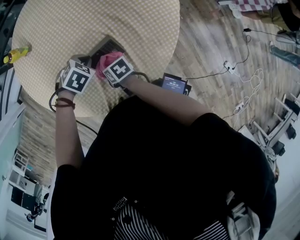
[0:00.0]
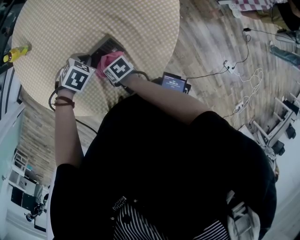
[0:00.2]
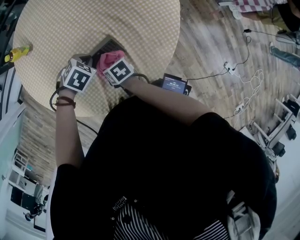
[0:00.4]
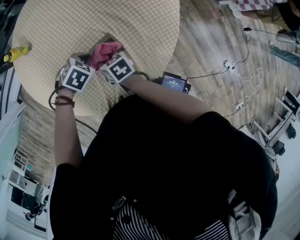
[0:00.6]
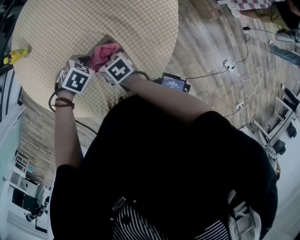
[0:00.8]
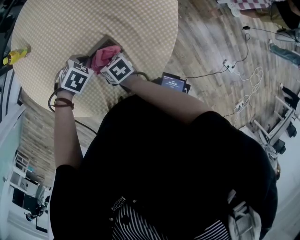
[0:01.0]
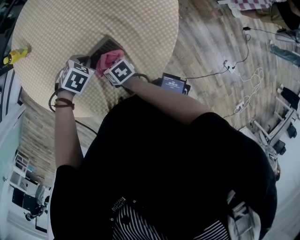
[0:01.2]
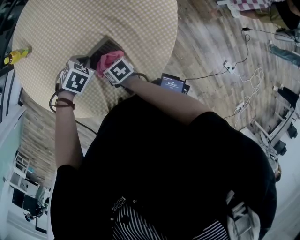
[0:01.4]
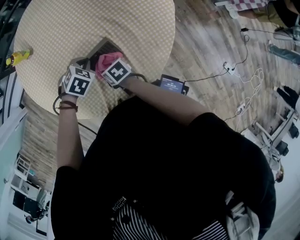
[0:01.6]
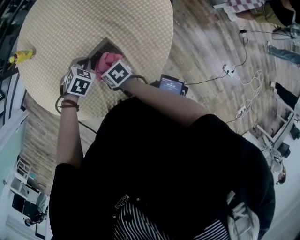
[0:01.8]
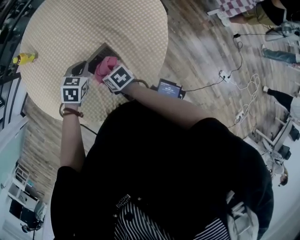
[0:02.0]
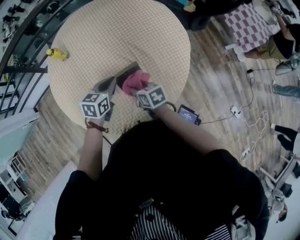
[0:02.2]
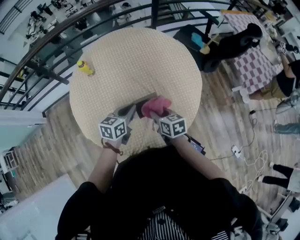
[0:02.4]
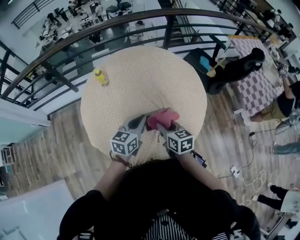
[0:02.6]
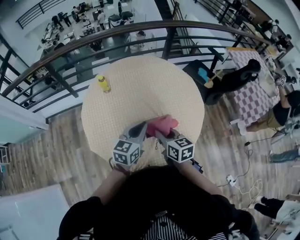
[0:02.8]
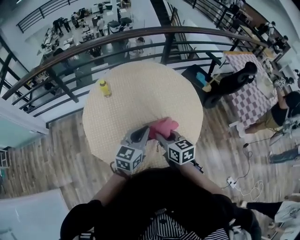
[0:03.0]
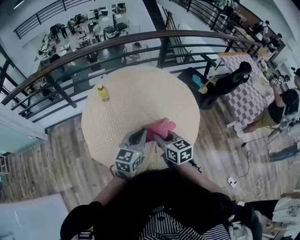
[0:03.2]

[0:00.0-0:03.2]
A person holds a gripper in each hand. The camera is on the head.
0:01.6 to 0:03.2: The two grippers go roughly 30 cm upward. The right gripper turns by approximately 40 degrees, while the left gripper tilts its fingers about 60 degrees upward.

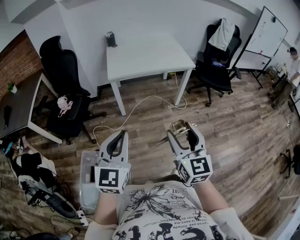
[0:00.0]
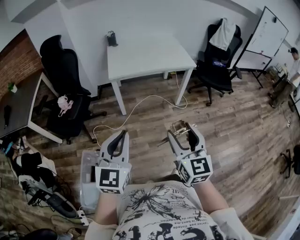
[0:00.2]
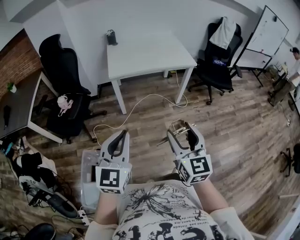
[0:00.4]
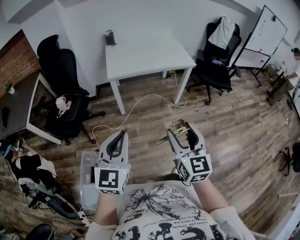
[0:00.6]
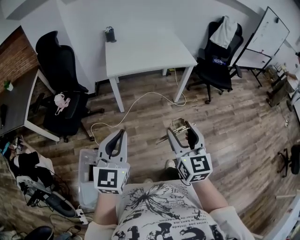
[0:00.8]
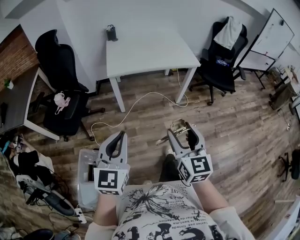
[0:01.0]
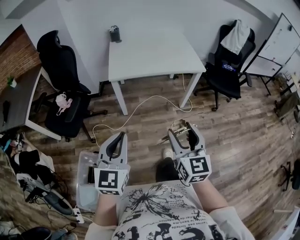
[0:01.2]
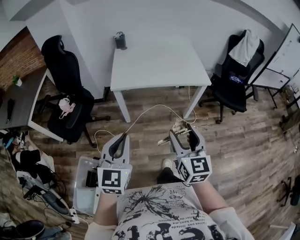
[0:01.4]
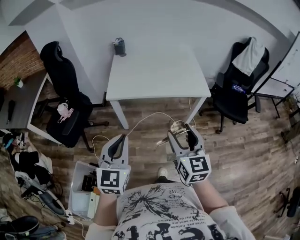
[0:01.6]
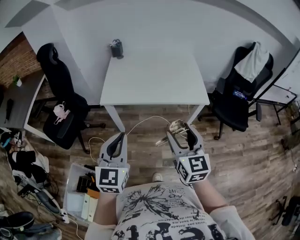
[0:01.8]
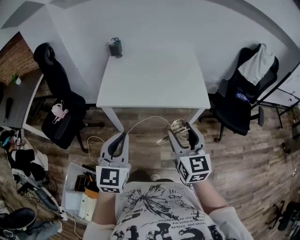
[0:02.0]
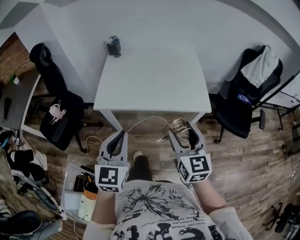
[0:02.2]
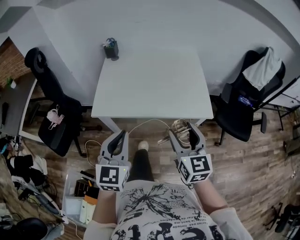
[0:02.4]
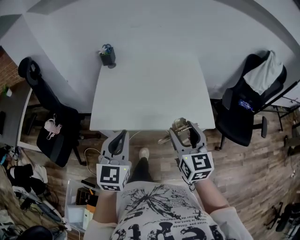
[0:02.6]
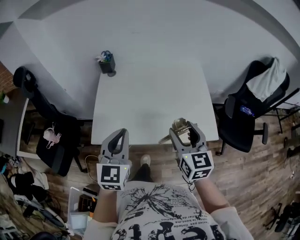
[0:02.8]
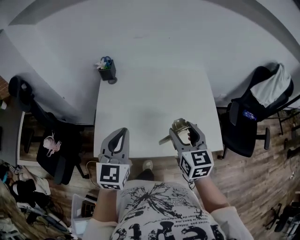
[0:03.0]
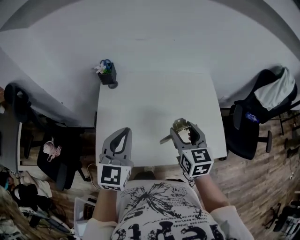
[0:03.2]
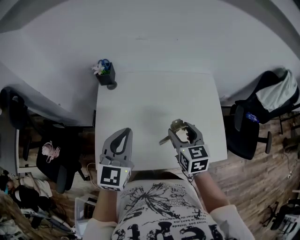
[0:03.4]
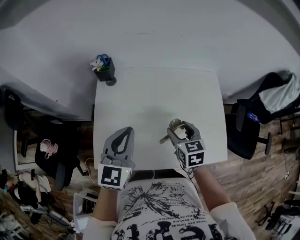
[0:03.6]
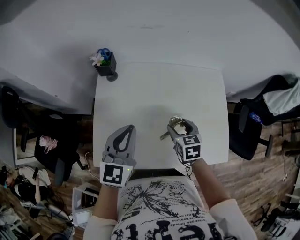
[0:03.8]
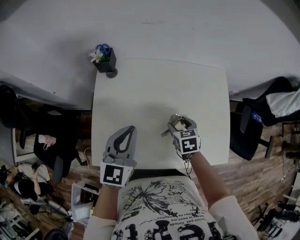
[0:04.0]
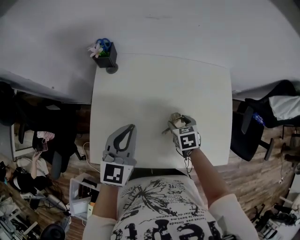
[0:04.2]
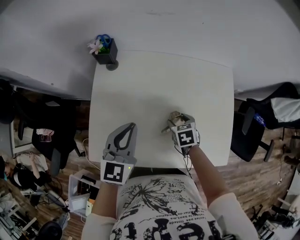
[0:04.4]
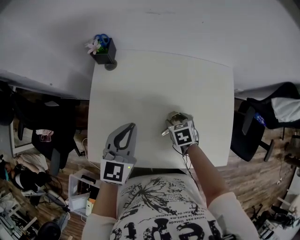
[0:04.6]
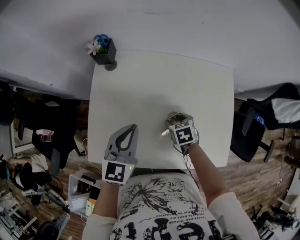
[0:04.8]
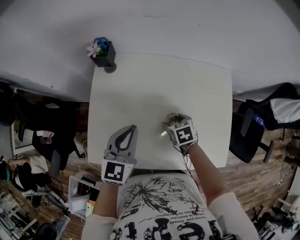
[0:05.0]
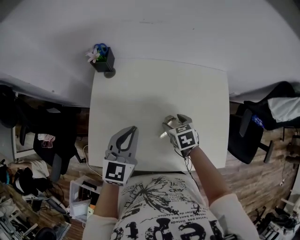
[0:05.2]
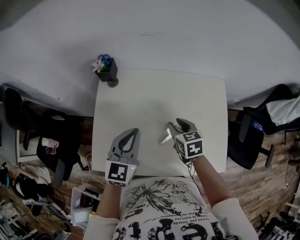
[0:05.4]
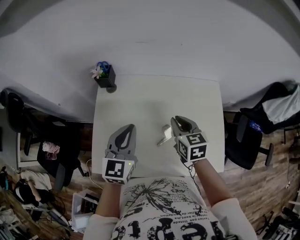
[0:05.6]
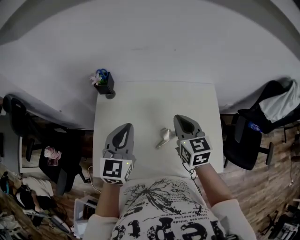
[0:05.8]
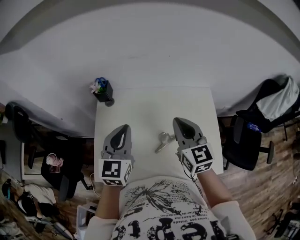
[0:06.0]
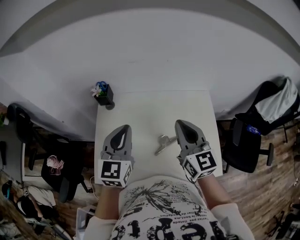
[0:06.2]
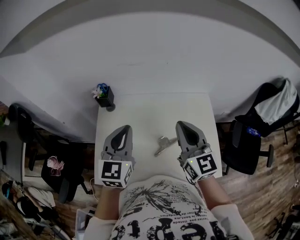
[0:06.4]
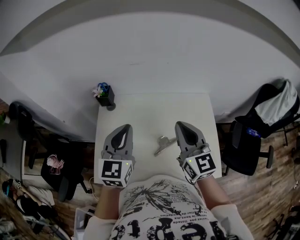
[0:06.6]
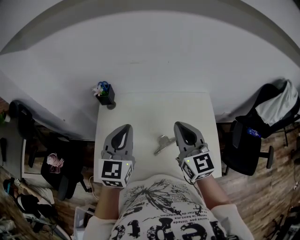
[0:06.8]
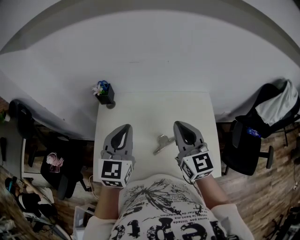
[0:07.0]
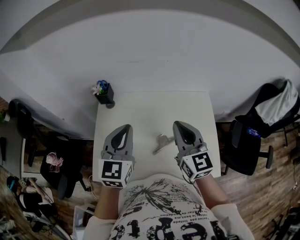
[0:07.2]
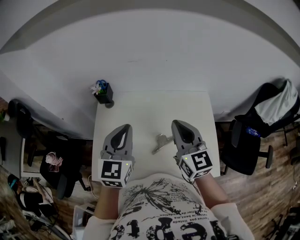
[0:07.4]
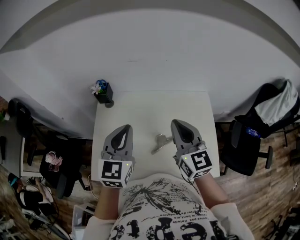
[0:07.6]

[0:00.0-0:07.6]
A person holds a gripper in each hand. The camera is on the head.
0:00.0 to 0:01.6: Both grippers move forward, some 25 cm.
0:01.6 to 0:03.0: Both grippers are carried forward, some 50 cm.
0:03.0 to 0:04.6: The right gripper goes roughly 30 cm downward and forward, and angles its fingers downward, by approximately 50 degrees. Meanwhile the left gripper is displaced forward and downward by approximately 20 cm.
0:04.6 to 0:06.0: The right gripper heads upward, covering about 30 cm, tilts its fingers approximately 50 degrees upward, and closes. Meanwhile the left gripper moves upward, about 10 cm.
0:06.0 to 0:07.6: The grippers move only a little.

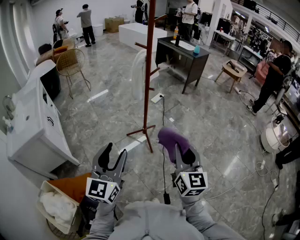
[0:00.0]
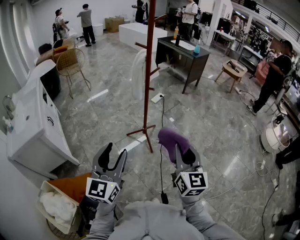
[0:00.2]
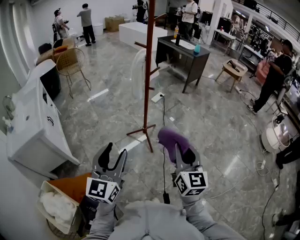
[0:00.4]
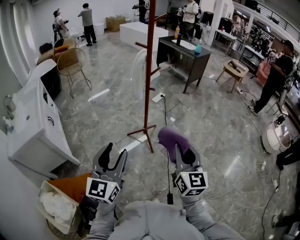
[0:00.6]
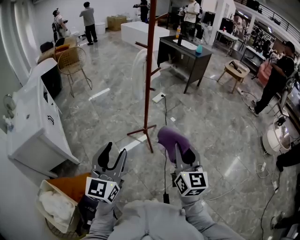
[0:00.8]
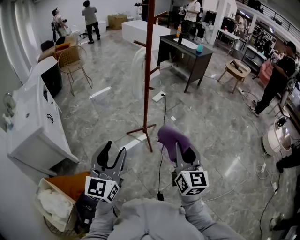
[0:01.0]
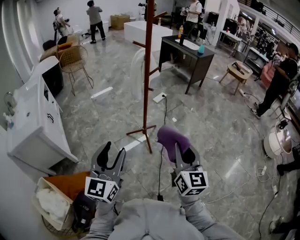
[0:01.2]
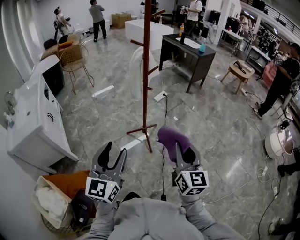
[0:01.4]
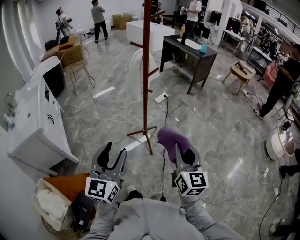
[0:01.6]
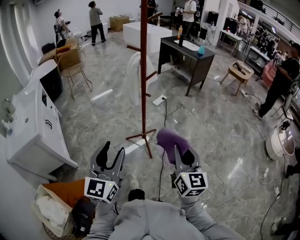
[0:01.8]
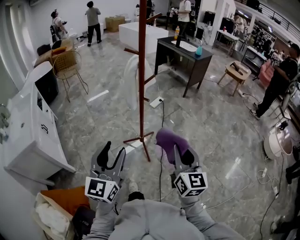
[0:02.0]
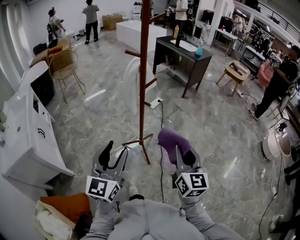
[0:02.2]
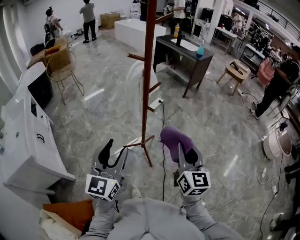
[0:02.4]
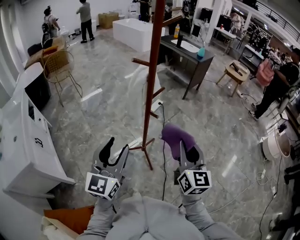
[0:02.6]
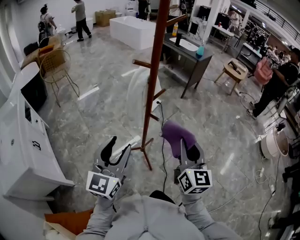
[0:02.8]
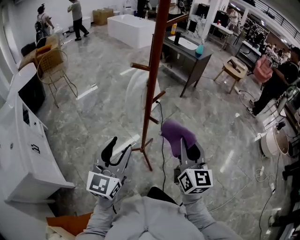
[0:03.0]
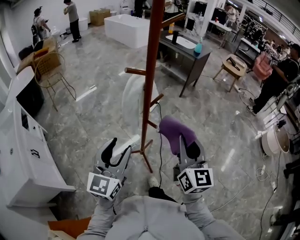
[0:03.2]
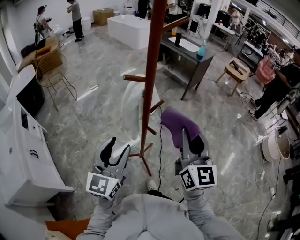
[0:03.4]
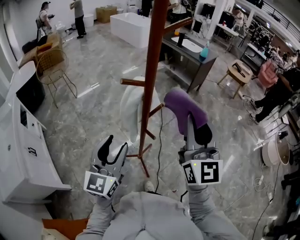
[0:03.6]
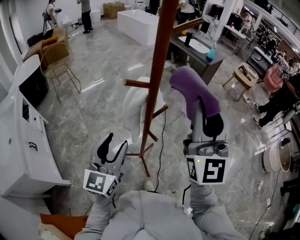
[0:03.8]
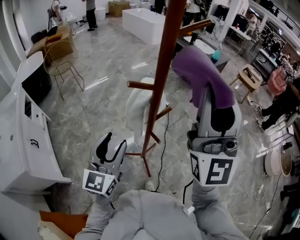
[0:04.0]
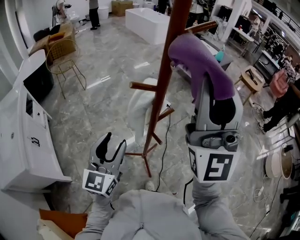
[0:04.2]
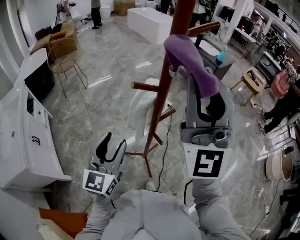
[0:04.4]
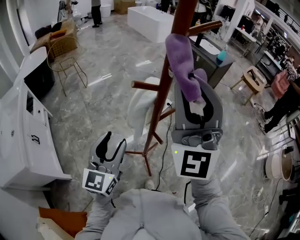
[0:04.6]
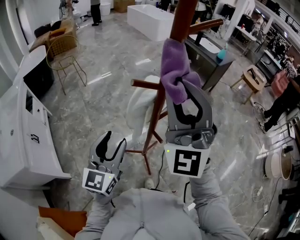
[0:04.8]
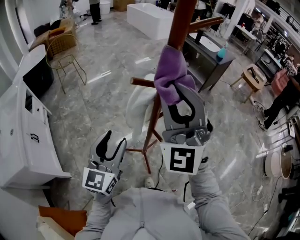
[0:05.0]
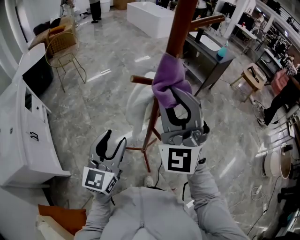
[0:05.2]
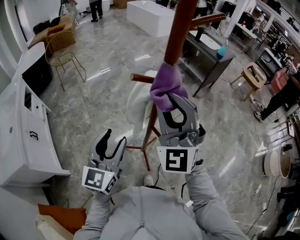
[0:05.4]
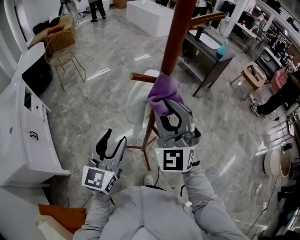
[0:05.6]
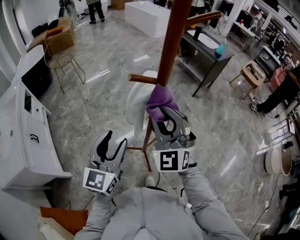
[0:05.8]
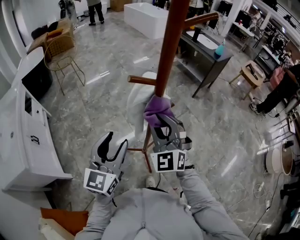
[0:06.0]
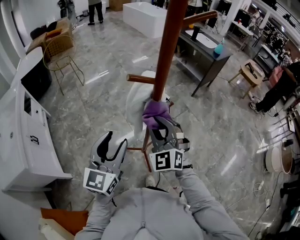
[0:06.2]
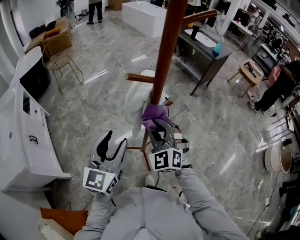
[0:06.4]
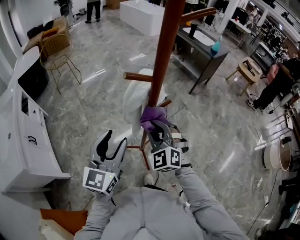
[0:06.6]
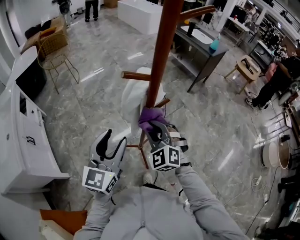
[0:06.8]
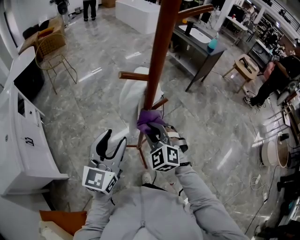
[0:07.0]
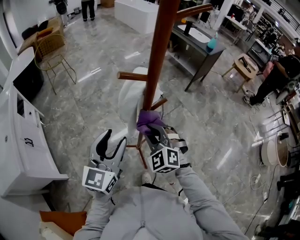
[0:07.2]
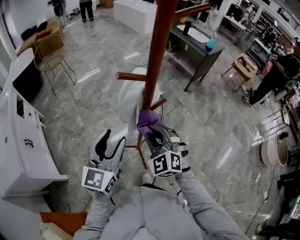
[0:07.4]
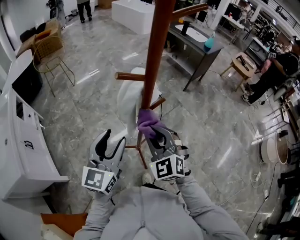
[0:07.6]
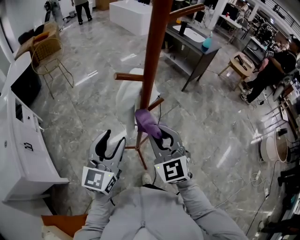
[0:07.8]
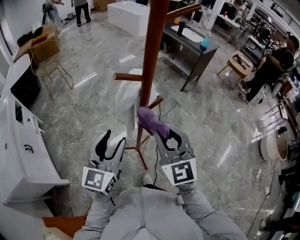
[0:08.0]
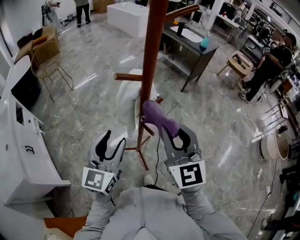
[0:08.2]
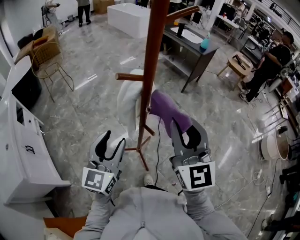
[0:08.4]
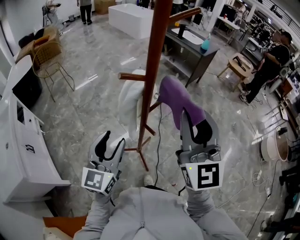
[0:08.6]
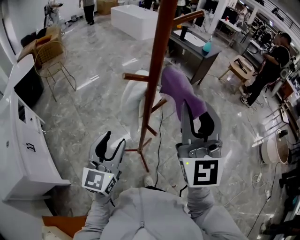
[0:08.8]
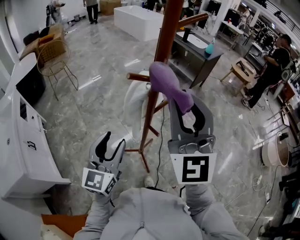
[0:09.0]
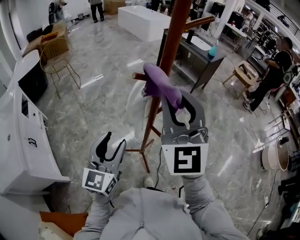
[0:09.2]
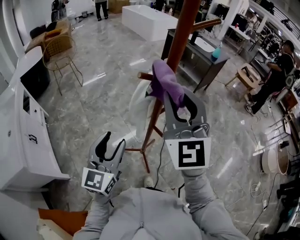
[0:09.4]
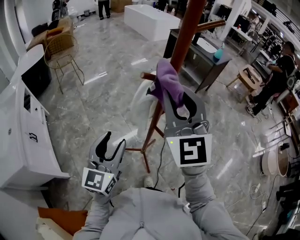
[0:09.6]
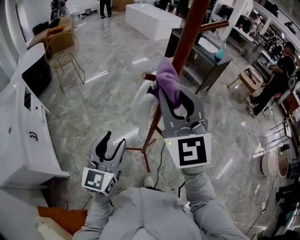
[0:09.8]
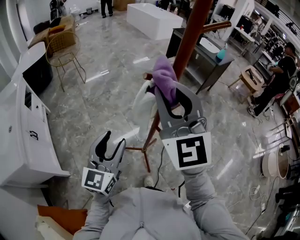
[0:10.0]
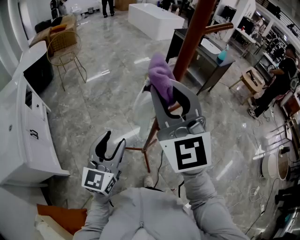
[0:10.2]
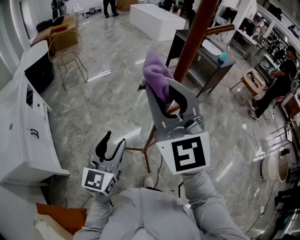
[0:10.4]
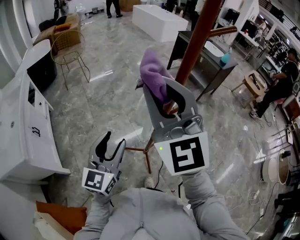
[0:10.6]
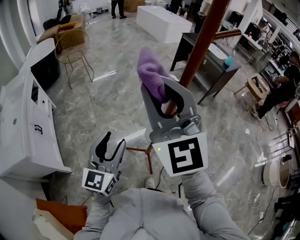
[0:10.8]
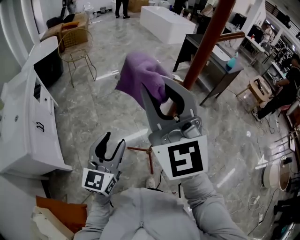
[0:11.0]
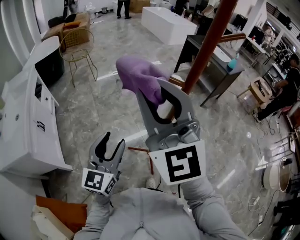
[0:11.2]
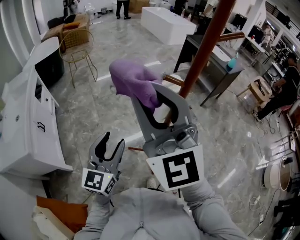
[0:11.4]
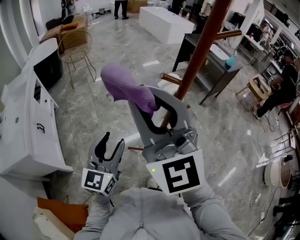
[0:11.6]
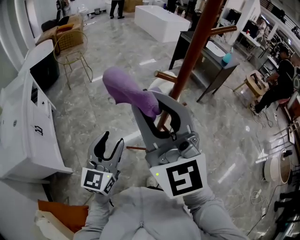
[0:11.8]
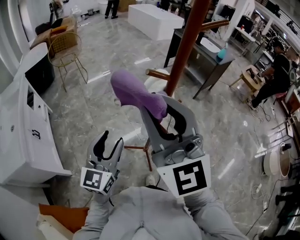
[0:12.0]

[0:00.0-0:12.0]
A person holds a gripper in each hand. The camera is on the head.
0:00.0 to 0:01.6: The two grippers go approximately 5 cm forward.
0:01.6 to 0:03.0: The two grippers go roughly 25 cm forward.
0:03.0 to 0:04.4: The right gripper moves upward and forward, approximately 30 cm, and tilts its fingers roughly 30 degrees upward. Meanwhile the left gripper shifts approximately 10 cm forward.
0:04.4 to 0:06.0: The right gripper is displaced downward by roughly 25 cm, and tips its fingers downward by roughly 40 degrees.
0:06.0 to 0:07.6: The right gripper shifts some 5 cm downward.
0:07.6 to 0:09.0: The right gripper is displaced upward by some 25 cm, and tips its fingers upward by approximately 40 degrees.
0:09.0 to 0:10.4: The right gripper goes approximately 10 cm to the left.
0:10.4 to 0:12.0: The right gripper goes approximately 5 cm backward, and travels to the left and back again, approximately 10 cm each way.

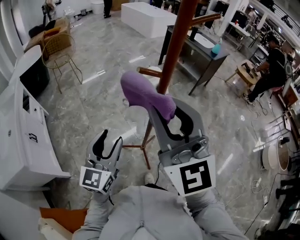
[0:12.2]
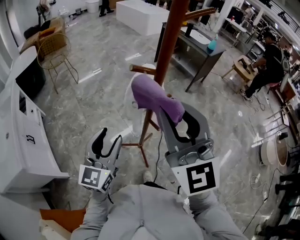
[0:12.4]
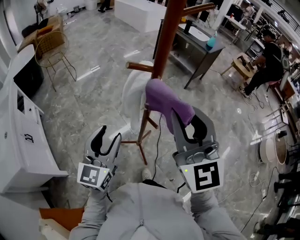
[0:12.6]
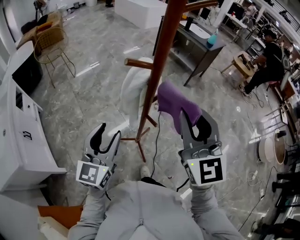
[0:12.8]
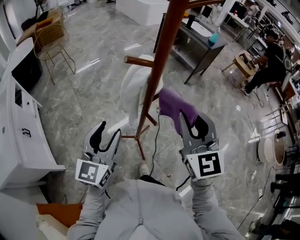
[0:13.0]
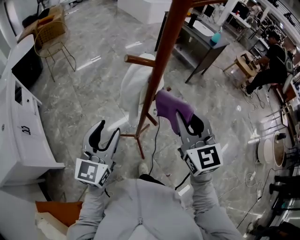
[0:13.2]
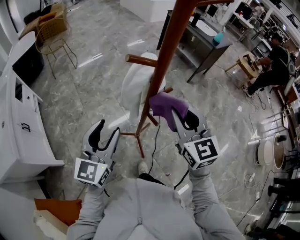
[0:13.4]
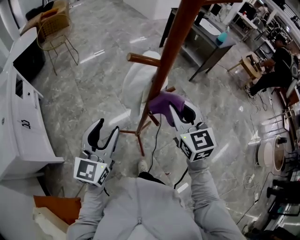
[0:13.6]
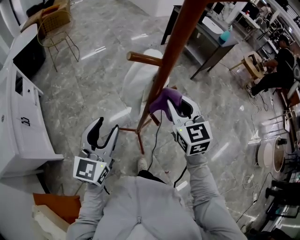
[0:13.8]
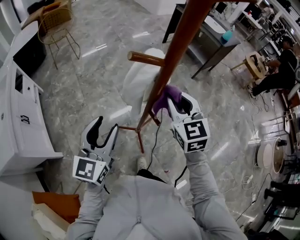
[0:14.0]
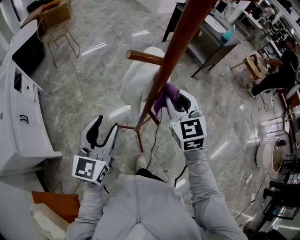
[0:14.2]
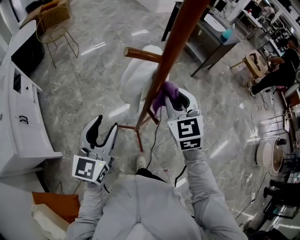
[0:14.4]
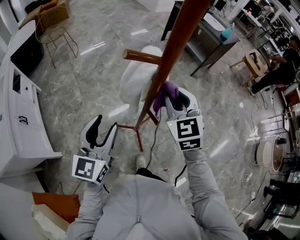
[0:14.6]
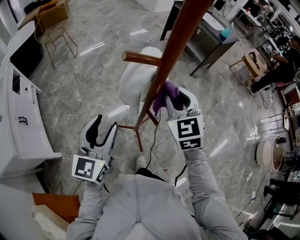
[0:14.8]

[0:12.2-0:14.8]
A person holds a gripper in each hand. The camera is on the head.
0:12.2 to 0:13.4: The right gripper shifts some 20 cm downward, to the right and forward, and swivels some 30 degrees.
0:13.4 to 0:14.8: The right gripper heads forward, covering approximately 10 cm.
